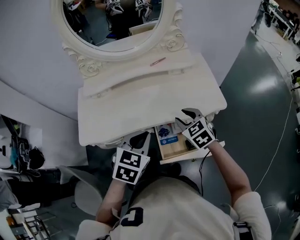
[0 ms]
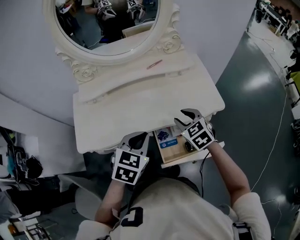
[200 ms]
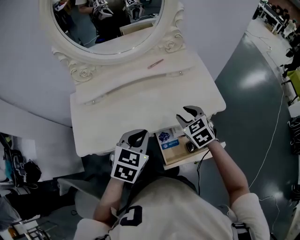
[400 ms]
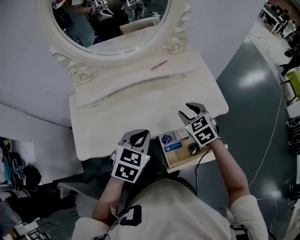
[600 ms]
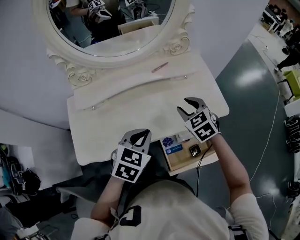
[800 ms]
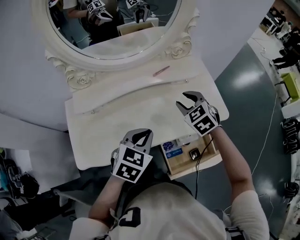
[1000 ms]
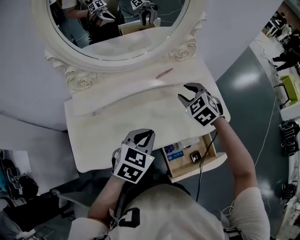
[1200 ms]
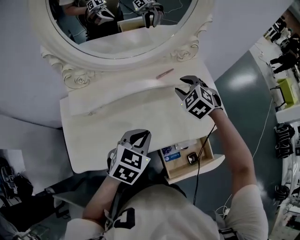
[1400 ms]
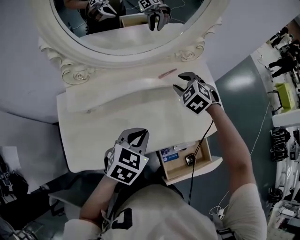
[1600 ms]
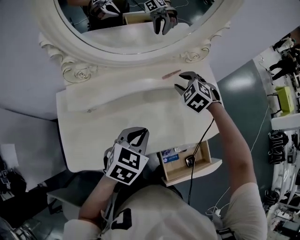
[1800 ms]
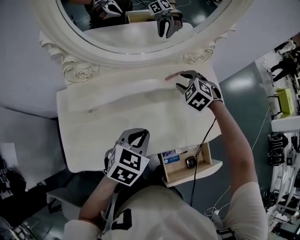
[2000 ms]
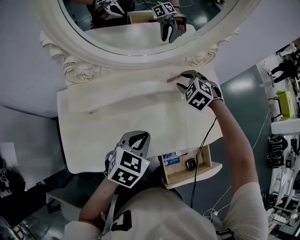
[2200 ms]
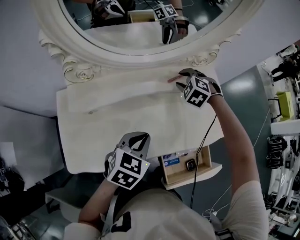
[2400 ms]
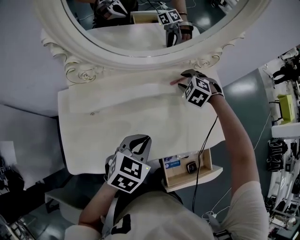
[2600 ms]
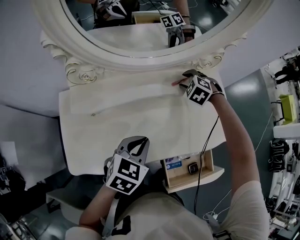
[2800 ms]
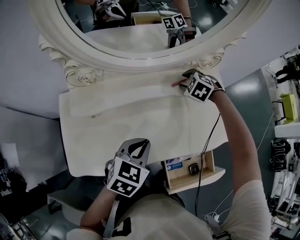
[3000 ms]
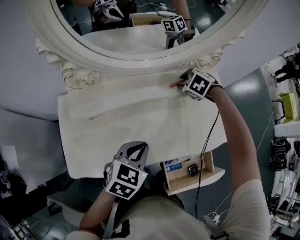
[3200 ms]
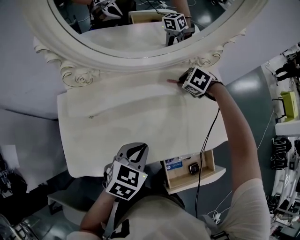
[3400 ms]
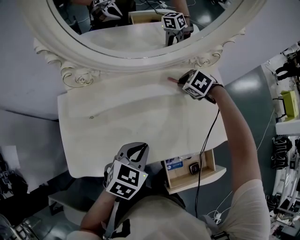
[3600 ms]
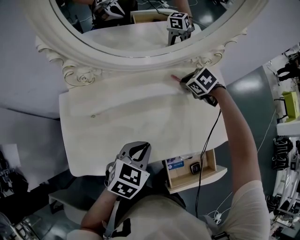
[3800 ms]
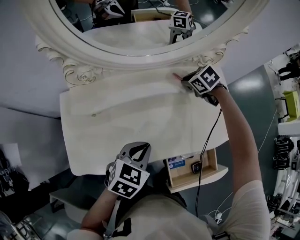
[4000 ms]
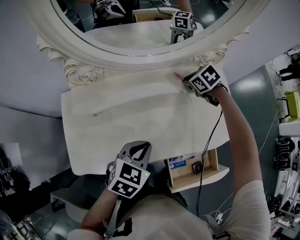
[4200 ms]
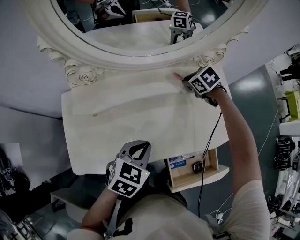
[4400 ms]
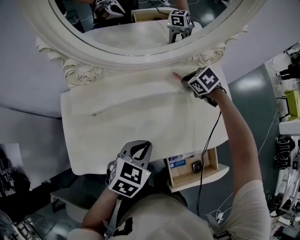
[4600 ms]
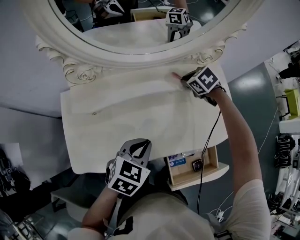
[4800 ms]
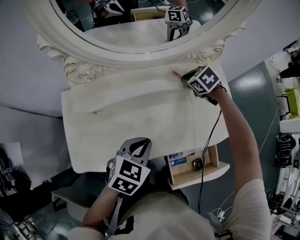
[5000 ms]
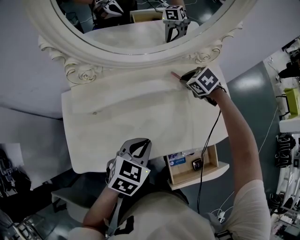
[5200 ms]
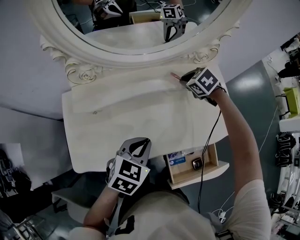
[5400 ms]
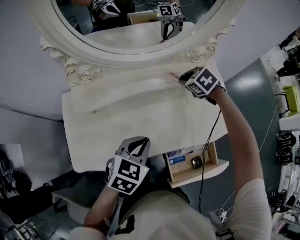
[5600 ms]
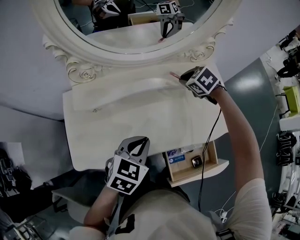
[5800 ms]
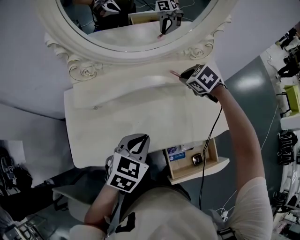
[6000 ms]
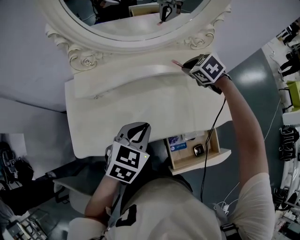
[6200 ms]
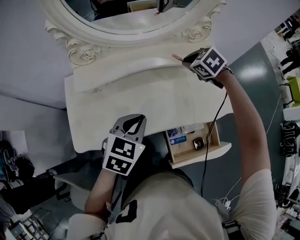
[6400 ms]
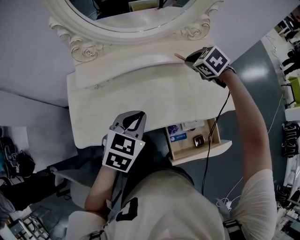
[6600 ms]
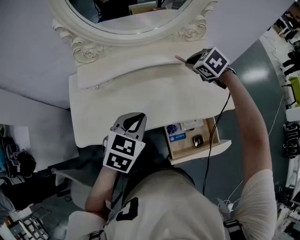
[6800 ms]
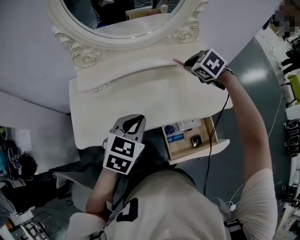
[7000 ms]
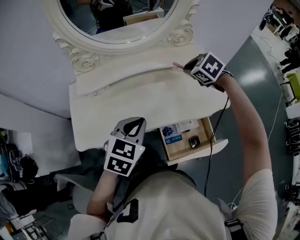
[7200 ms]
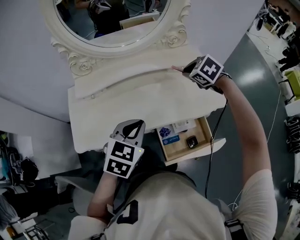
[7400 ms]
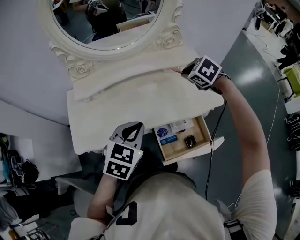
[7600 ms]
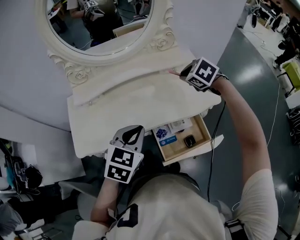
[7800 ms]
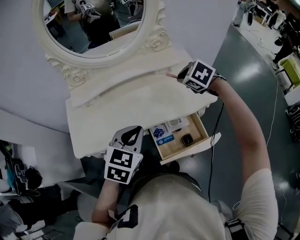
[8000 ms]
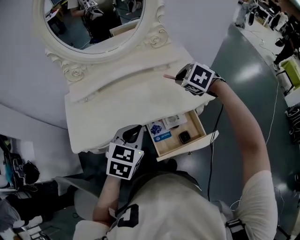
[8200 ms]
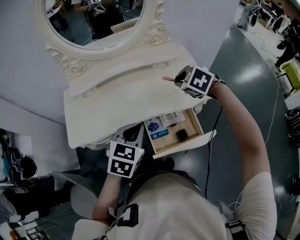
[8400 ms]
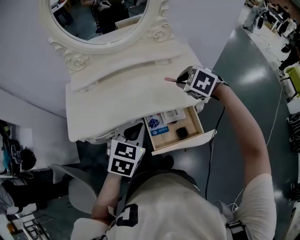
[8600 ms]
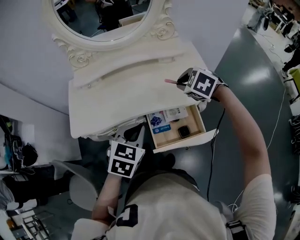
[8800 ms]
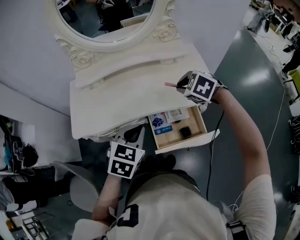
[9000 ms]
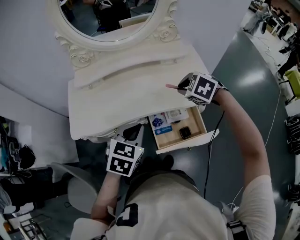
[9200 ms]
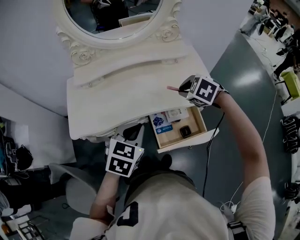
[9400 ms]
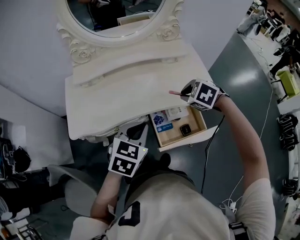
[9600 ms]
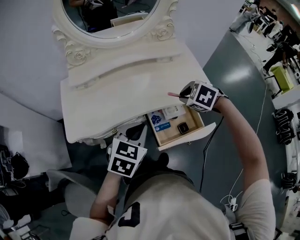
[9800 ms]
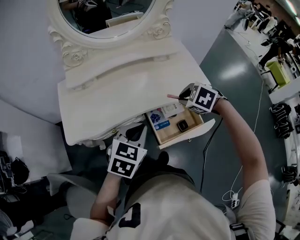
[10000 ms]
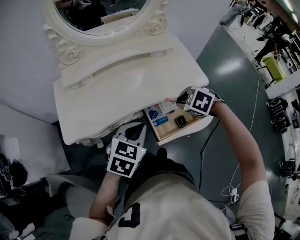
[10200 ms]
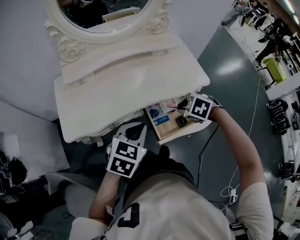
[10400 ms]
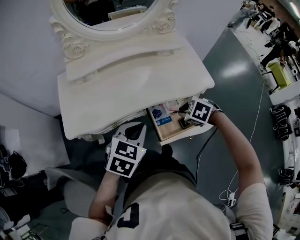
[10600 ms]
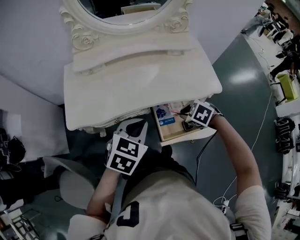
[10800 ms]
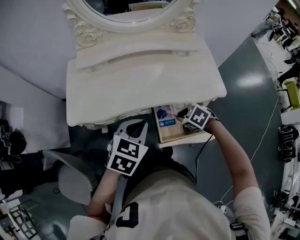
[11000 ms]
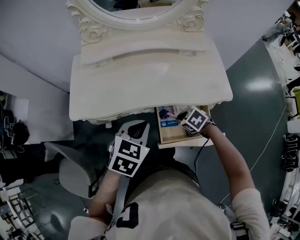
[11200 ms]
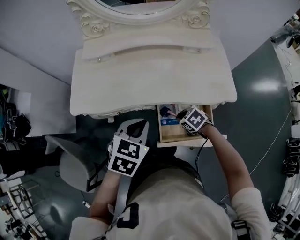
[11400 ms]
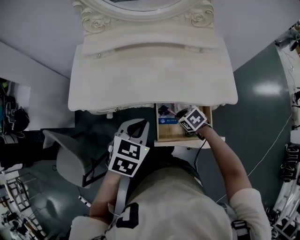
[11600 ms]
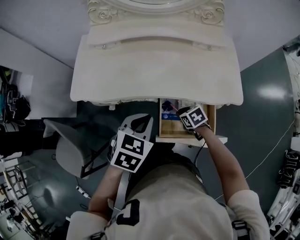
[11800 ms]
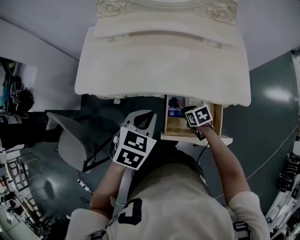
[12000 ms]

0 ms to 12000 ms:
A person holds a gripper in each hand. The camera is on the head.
0 ms to 1600 ms: The left gripper heads forward and to the left, covering about 20 cm. The right gripper goes about 30 cm forward and to the left, and turns by approximately 30 degrees.
1600 ms to 3000 ms: The right gripper goes some 10 cm downward and forward.
3000 ms to 4400 ms: The right gripper turns by roughly 30 degrees, and closes its fingers.
4400 ms to 6000 ms: The right gripper is displaced backward by roughly 5 cm.
6000 ms to 7600 ms: The grippers both shift backward, to the right and upward by about 15 cm.
7600 ms to 9000 ms: The left gripper shifts roughly 10 cm backward; the right gripper heads backward, covering about 10 cm.
9000 ms to 10400 ms: The right gripper travels backward and downward by about 15 cm. Meanwhile the left gripper moves to the left, about 5 cm.
10400 ms to 12000 ms: The left gripper travels downward by about 5 cm, and swivels approximately 30 degrees. The right gripper goes approximately 20 cm downward, and changes its angle by some 30 degrees.

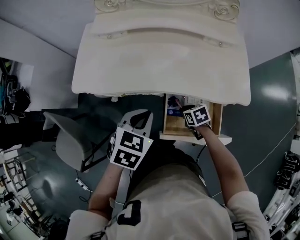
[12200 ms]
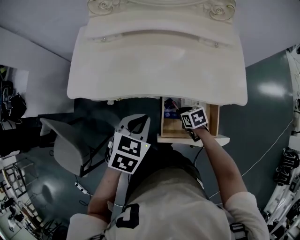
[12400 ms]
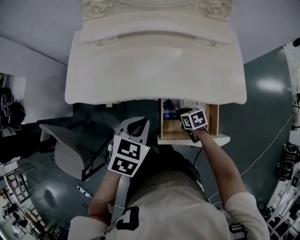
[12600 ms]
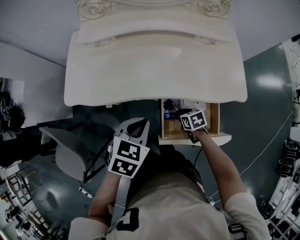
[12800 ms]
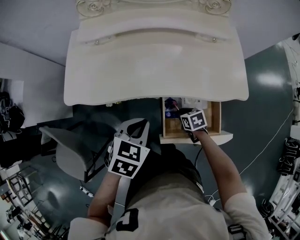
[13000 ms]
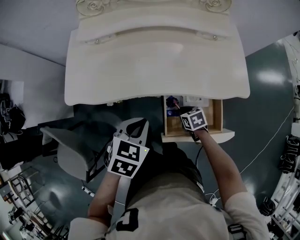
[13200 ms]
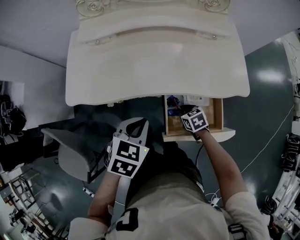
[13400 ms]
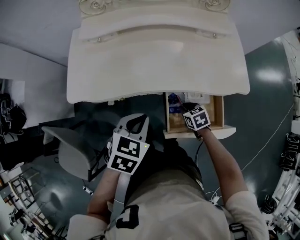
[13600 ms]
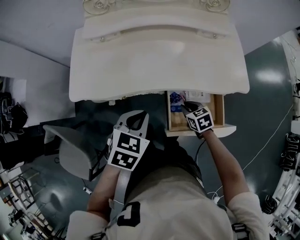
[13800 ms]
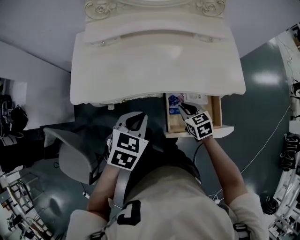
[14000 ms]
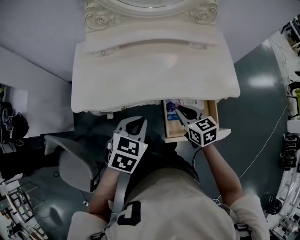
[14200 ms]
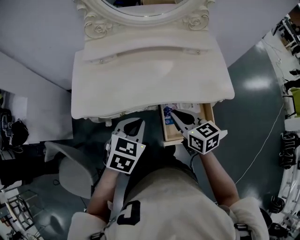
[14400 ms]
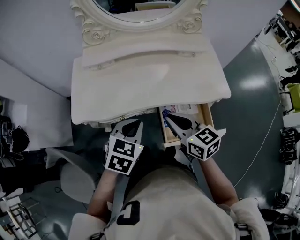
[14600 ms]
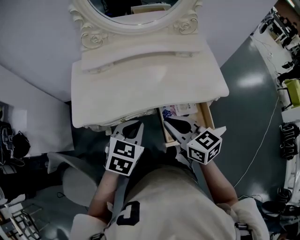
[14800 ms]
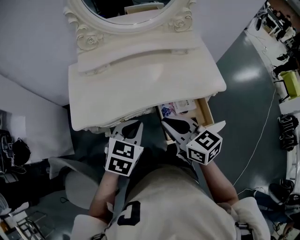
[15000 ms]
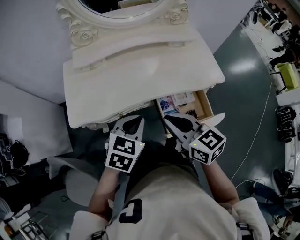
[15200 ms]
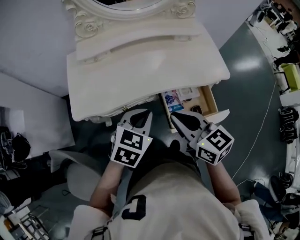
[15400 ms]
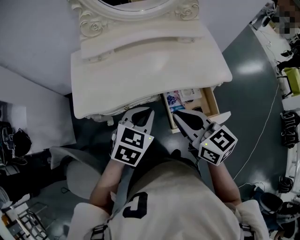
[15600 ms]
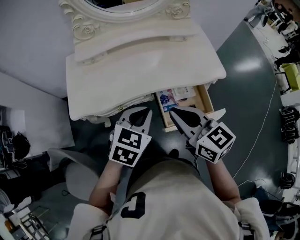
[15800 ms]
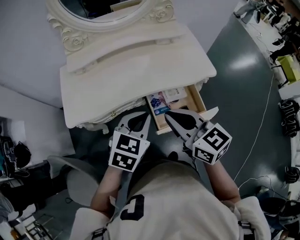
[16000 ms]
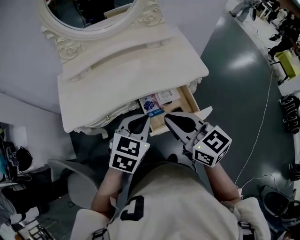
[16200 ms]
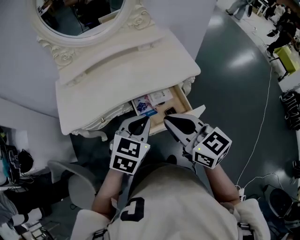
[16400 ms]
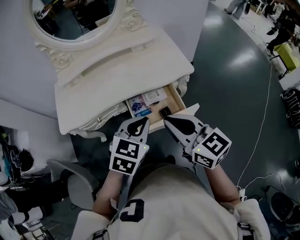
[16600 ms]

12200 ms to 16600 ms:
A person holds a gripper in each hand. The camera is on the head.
12200 ms to 13600 ms: There are only small adjustments of the grippers.
13600 ms to 15200 ms: The left gripper moves upward, about 5 cm. Meanwhile the right gripper moves upward, about 30 cm, and tilts its fingers approximately 40 degrees upward.
15200 ms to 16600 ms: The right gripper shifts some 20 cm to the right and backward. The left gripper goes about 20 cm to the right.

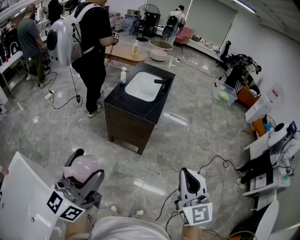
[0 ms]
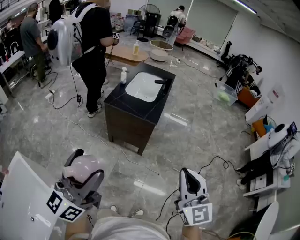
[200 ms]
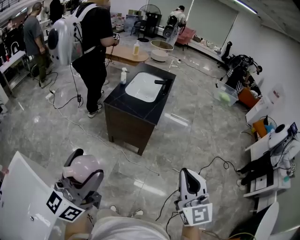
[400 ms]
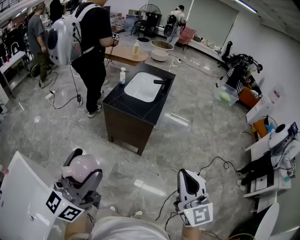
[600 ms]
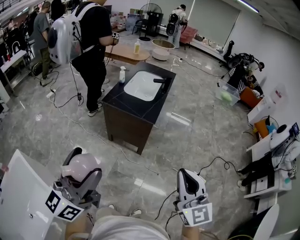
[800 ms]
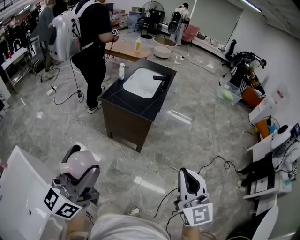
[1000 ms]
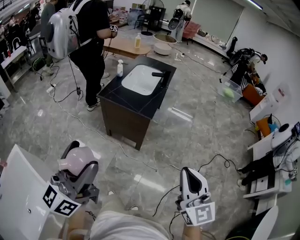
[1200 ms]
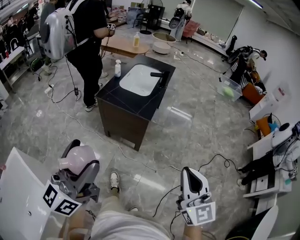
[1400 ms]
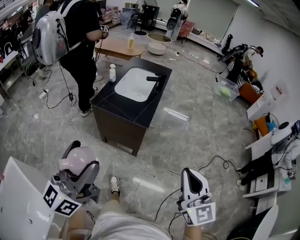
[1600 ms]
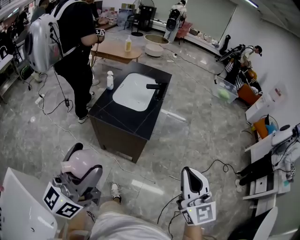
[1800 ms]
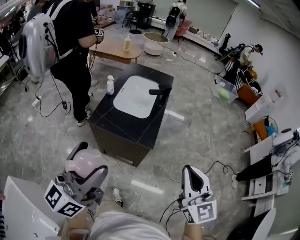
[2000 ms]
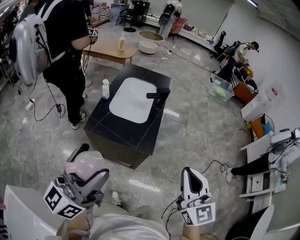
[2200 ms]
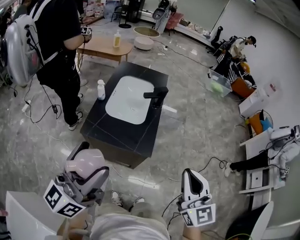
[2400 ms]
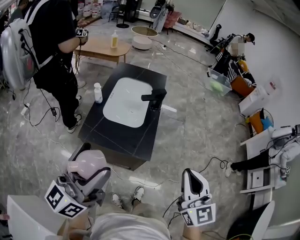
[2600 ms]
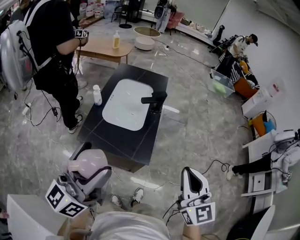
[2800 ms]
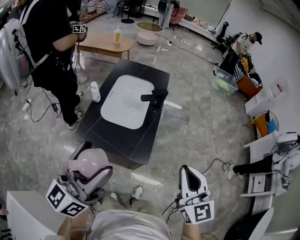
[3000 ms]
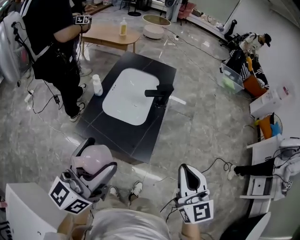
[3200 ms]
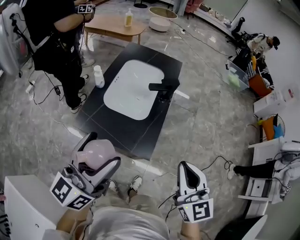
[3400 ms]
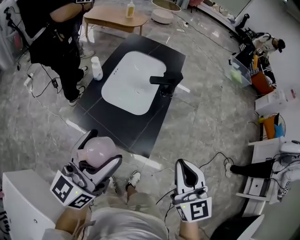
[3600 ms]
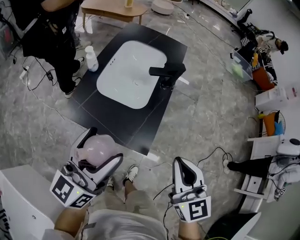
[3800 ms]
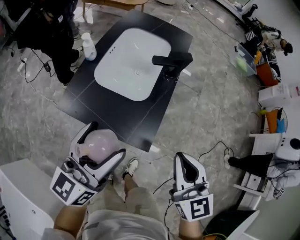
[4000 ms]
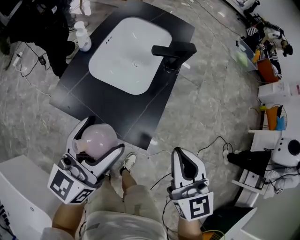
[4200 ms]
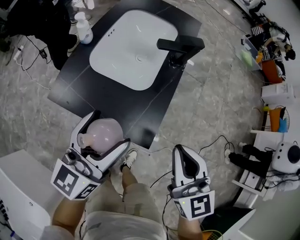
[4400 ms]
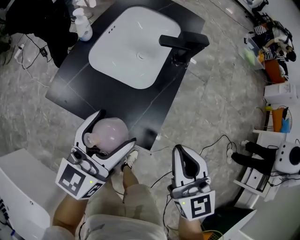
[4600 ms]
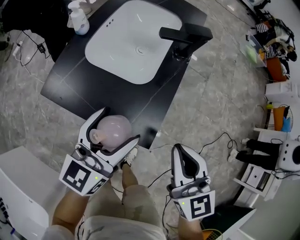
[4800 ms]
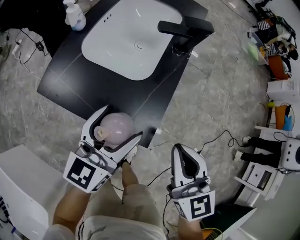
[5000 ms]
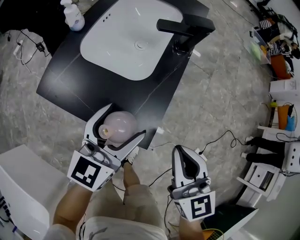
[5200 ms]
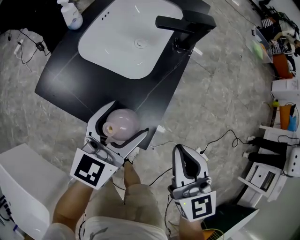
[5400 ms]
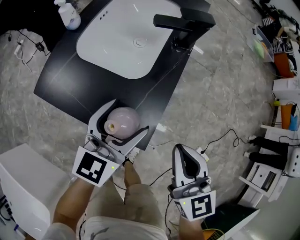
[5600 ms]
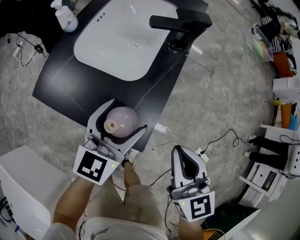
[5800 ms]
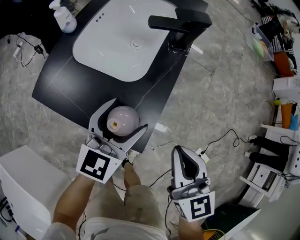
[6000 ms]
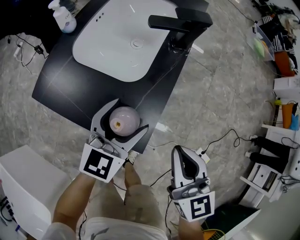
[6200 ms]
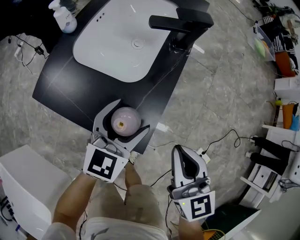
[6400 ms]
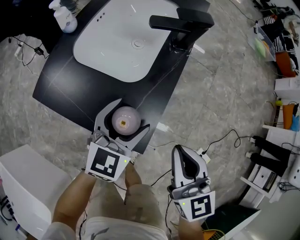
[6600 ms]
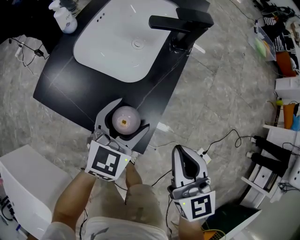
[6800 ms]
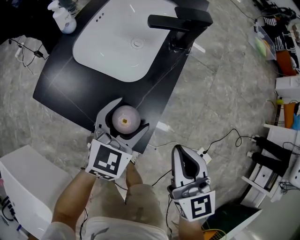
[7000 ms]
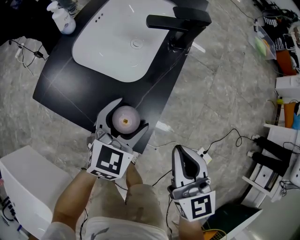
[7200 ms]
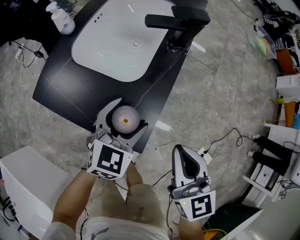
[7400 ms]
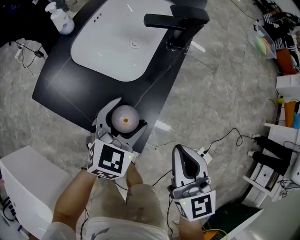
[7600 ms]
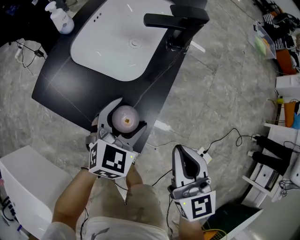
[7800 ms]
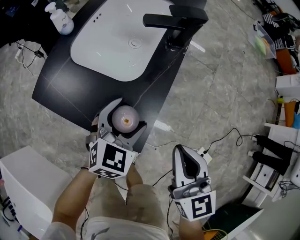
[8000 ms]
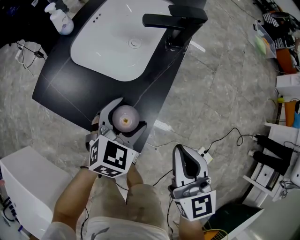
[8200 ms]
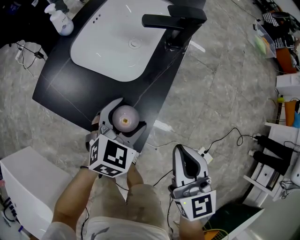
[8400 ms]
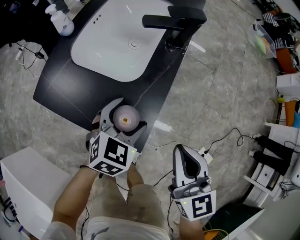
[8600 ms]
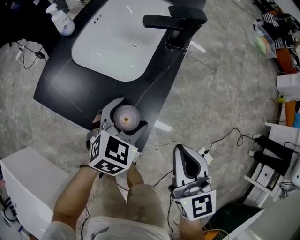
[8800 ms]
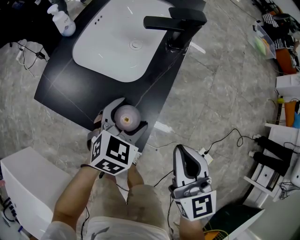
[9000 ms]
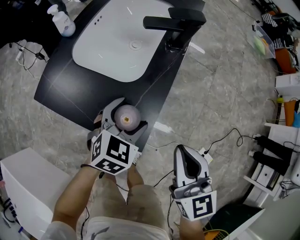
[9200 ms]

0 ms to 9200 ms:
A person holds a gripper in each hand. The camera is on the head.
0 ms to 1600 ms: The grippers both shift forward and to the right by about 15 cm.
1600 ms to 3000 ms: The two grippers go some 30 cm forward.
3000 ms to 4600 ms: The grippers both shift downward and forward by approximately 25 cm.
4600 ms to 6200 ms: The left gripper heads downward and to the right, covering some 15 cm, and swivels some 20 degrees, while the right gripper travels downward by approximately 5 cm.
6200 ms to 7600 ms: The grippers stay close to where they were, moving slightly.
7600 ms to 9200 ms: The grippers stay close to where they were, moving slightly.
